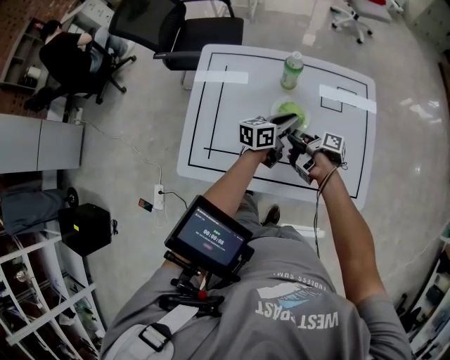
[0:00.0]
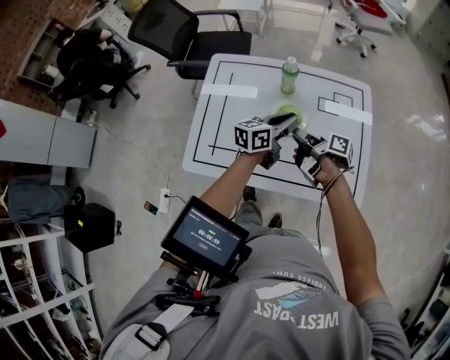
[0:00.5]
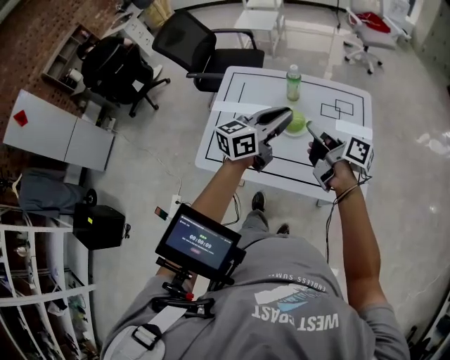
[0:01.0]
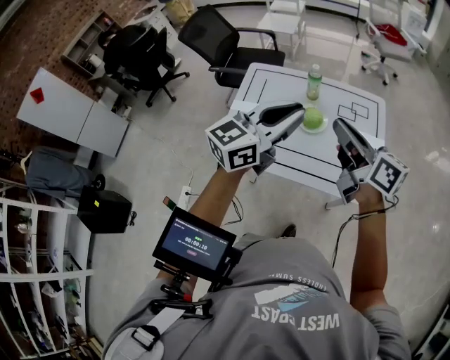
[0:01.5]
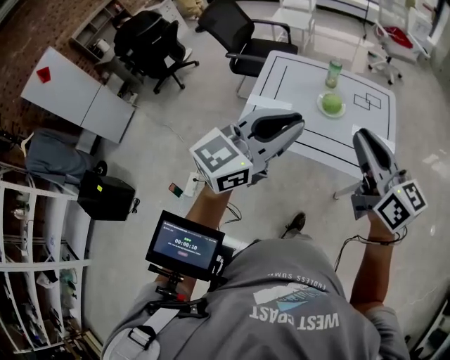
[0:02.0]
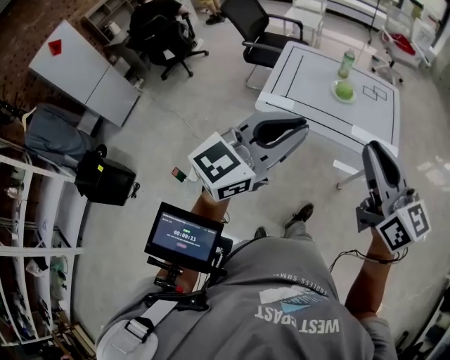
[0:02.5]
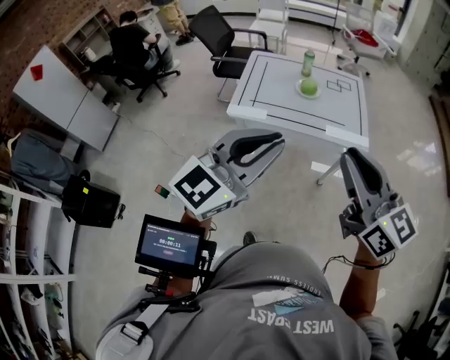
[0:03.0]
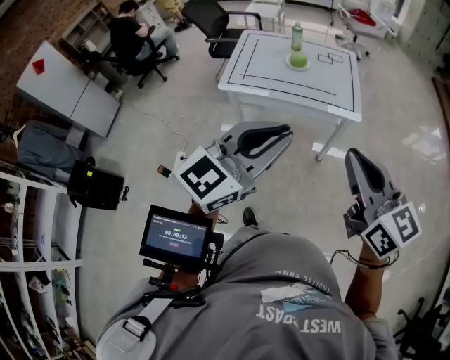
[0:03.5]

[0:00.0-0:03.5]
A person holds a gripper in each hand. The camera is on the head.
0:00.0 to 0:02.0: The left gripper ends up about 50 cm from where it was, and rotates around the line of its fingers by roughly 40 degrees, clockwise from behind.
0:02.0 to 0:03.5: The left gripper moves approximately 35 cm.

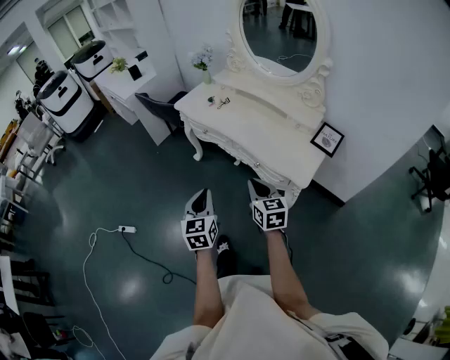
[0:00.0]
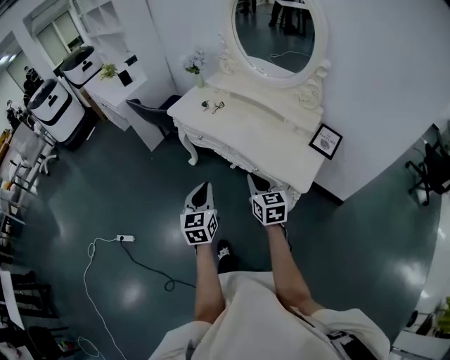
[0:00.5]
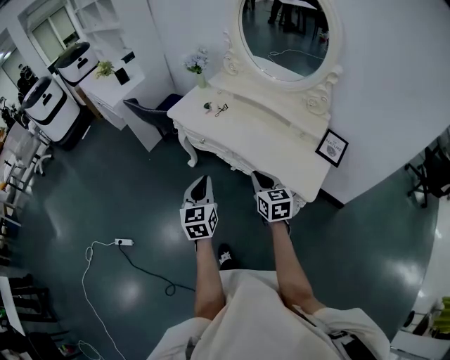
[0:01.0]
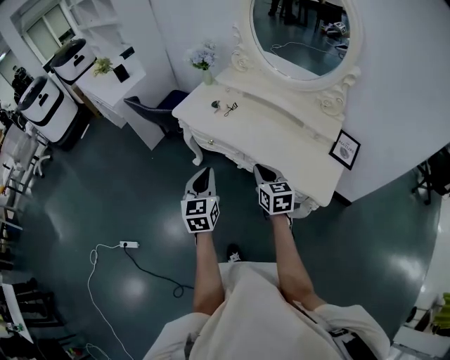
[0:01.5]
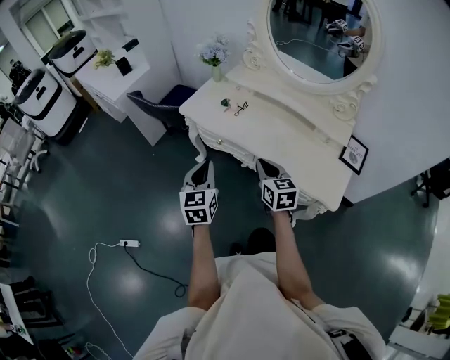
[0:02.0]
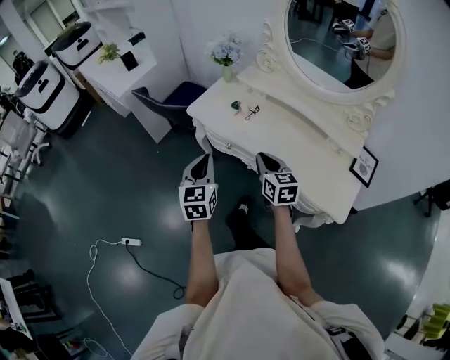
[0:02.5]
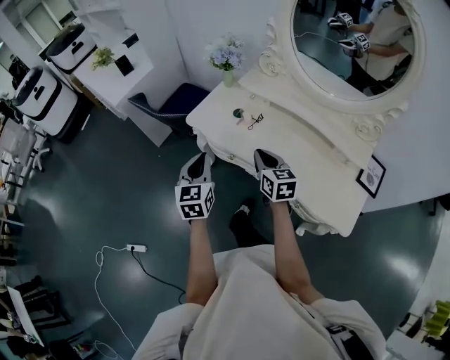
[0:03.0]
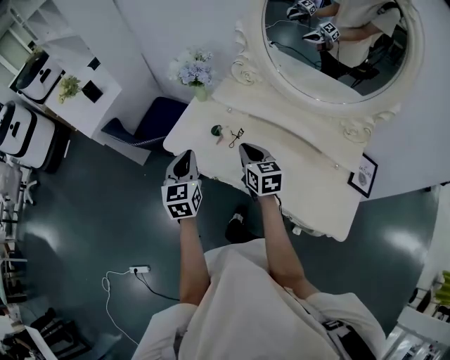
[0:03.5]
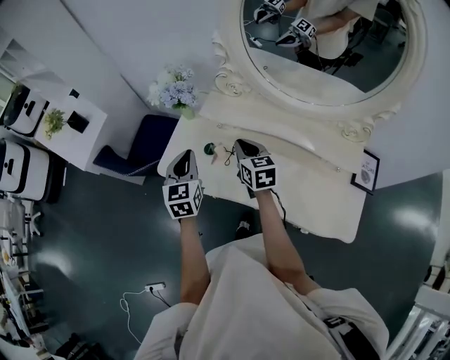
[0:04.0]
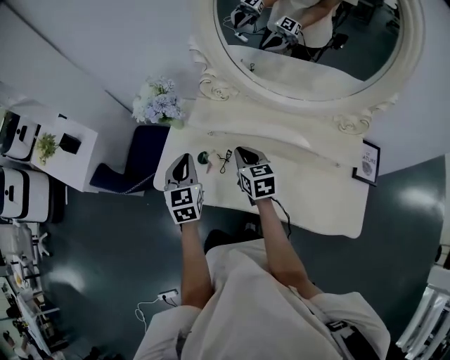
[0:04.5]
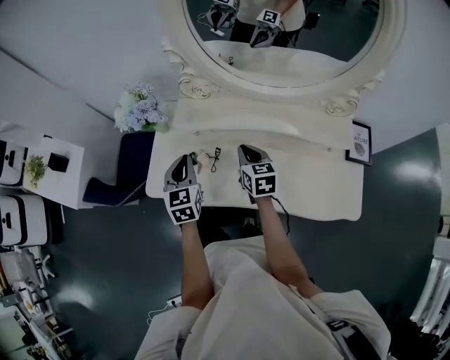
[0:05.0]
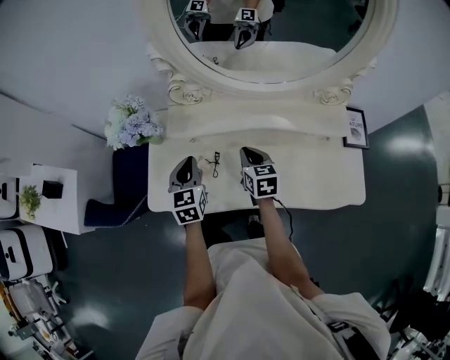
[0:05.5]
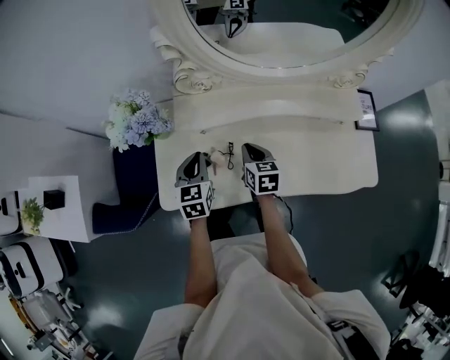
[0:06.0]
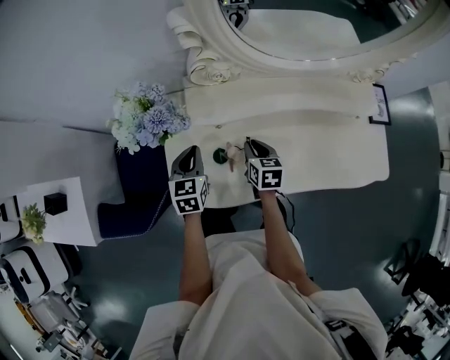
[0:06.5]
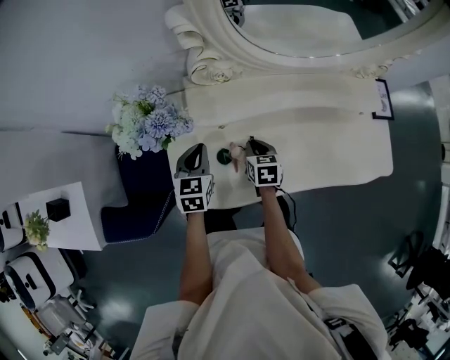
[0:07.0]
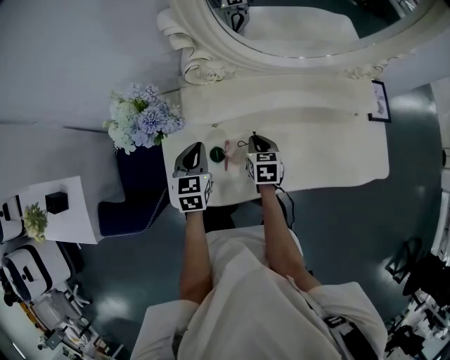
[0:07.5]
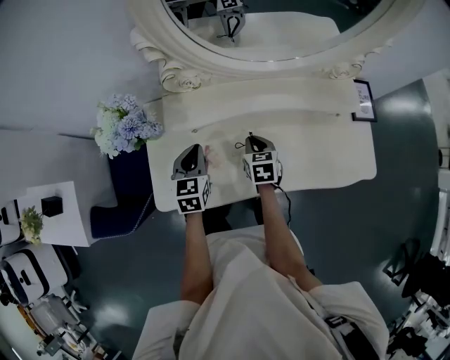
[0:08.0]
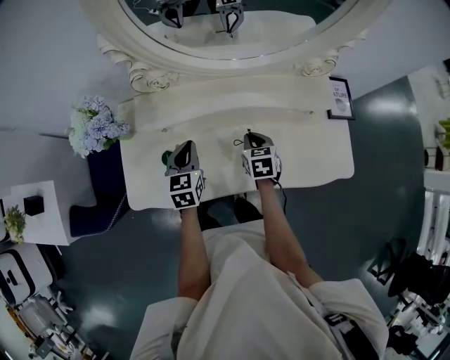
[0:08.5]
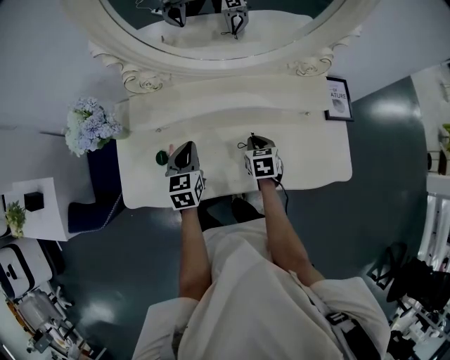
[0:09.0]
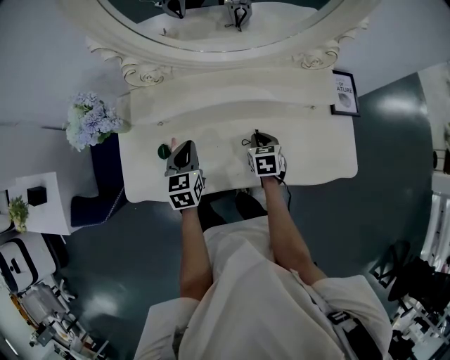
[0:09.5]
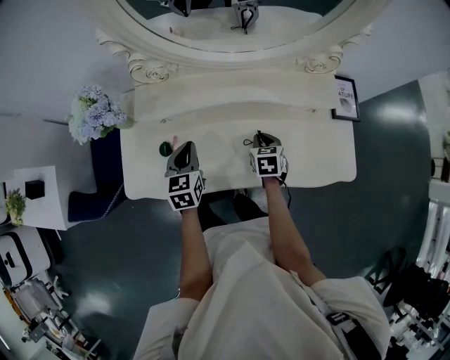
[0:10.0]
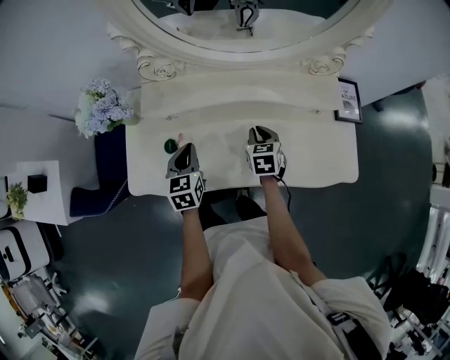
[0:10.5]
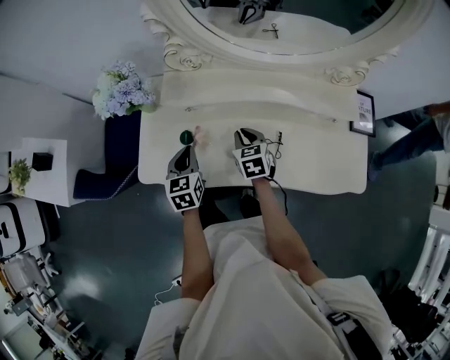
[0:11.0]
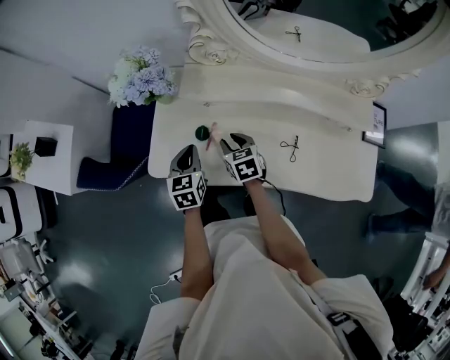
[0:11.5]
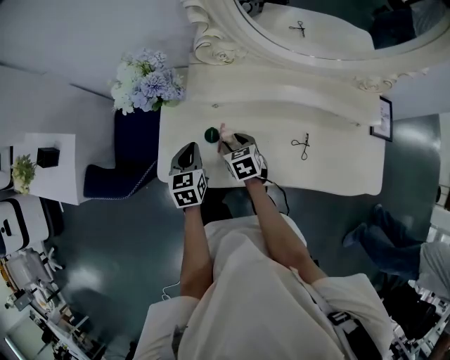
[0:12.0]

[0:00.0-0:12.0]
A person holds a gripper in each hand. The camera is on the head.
0:00.0 to 0:02.0: The two grippers go roughly 25 cm forward.
0:02.0 to 0:04.0: Both grippers travel together forward, about 40 cm.
0:04.0 to 0:06.0: The grippers both shift downward by about 10 cm. The right gripper changes its angle by roughly 30 degrees. The left gripper turns by roughly 30 degrees.
0:06.0 to 0:08.0: The left gripper goes to the left and returns, some 5 cm each way.
0:08.0 to 0:10.0: The left gripper travels to the right by about 10 cm; the right gripper moves to the right, some 15 cm.
0:10.0 to 0:12.0: The right gripper travels to the left by approximately 30 cm, changes its angle by approximately 30 degrees, and opens. The left gripper shifts approximately 20 cm to the left.

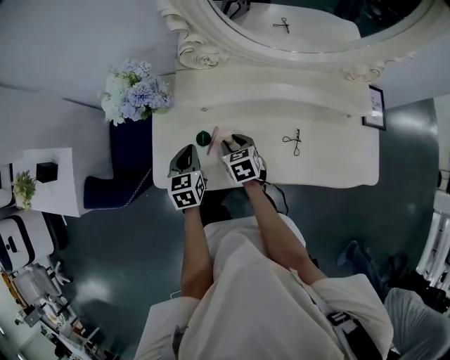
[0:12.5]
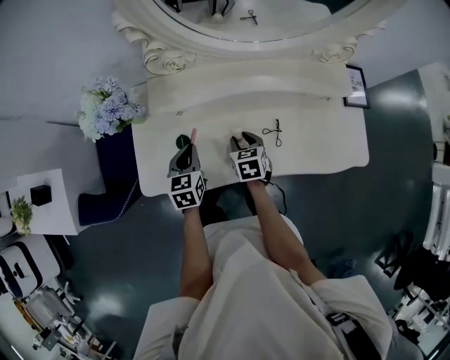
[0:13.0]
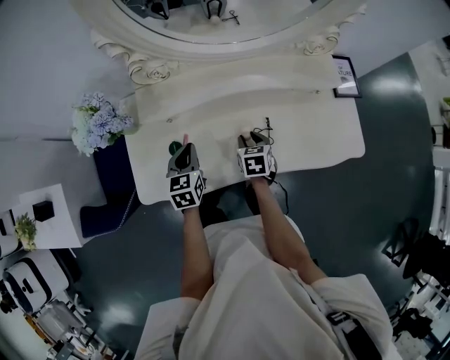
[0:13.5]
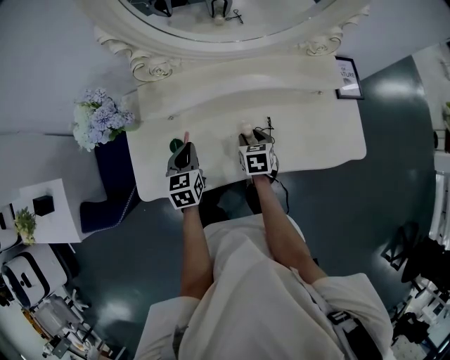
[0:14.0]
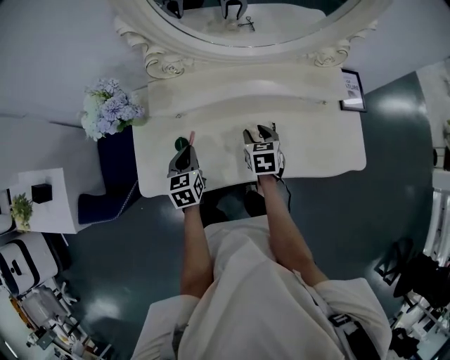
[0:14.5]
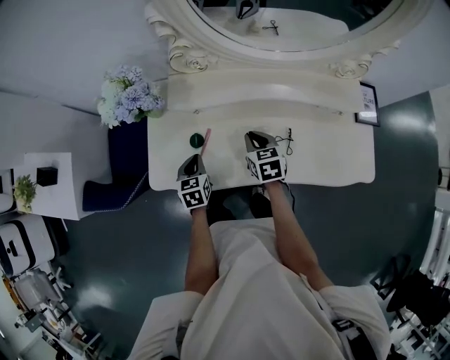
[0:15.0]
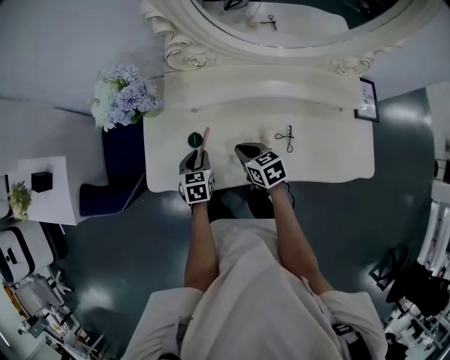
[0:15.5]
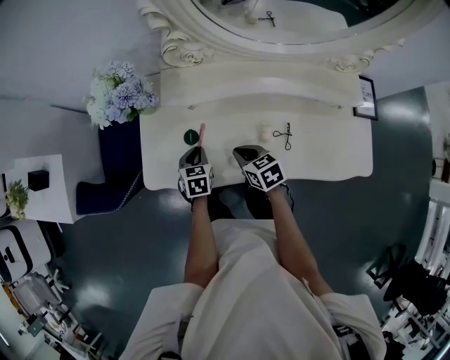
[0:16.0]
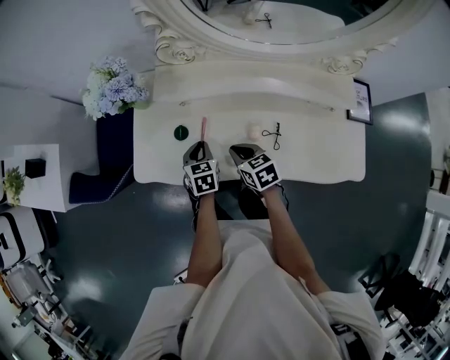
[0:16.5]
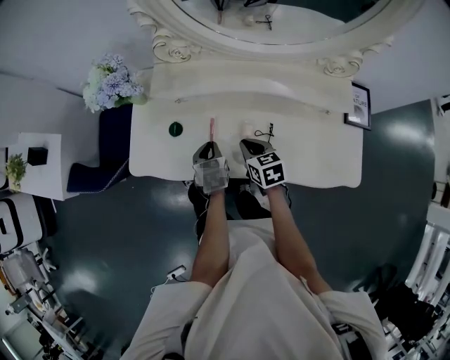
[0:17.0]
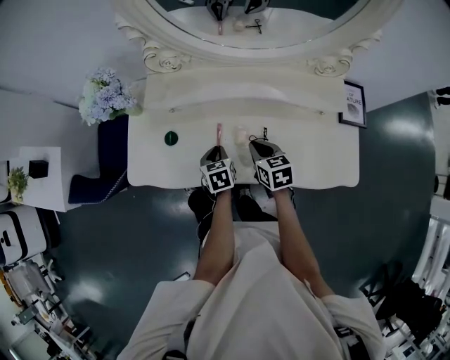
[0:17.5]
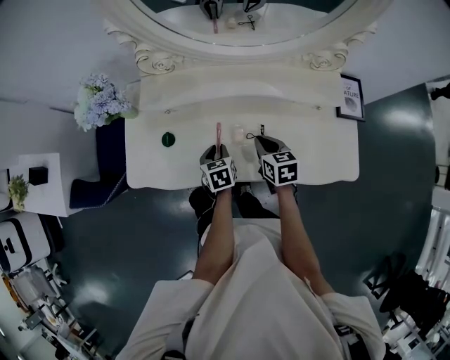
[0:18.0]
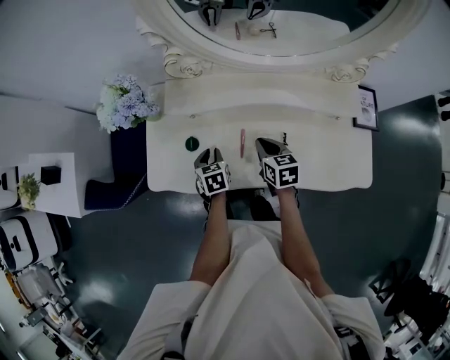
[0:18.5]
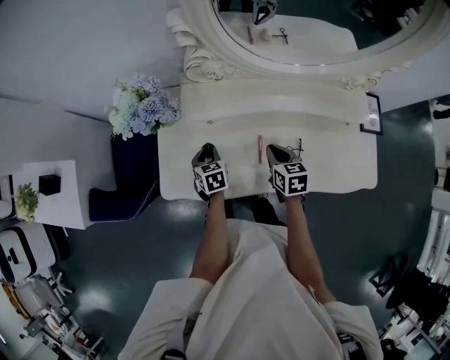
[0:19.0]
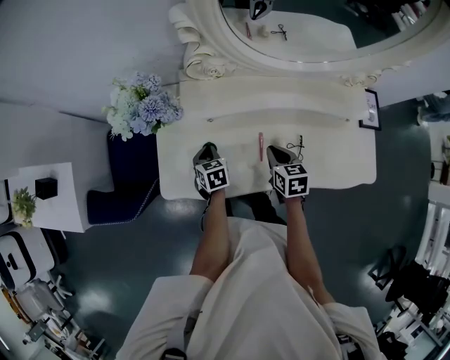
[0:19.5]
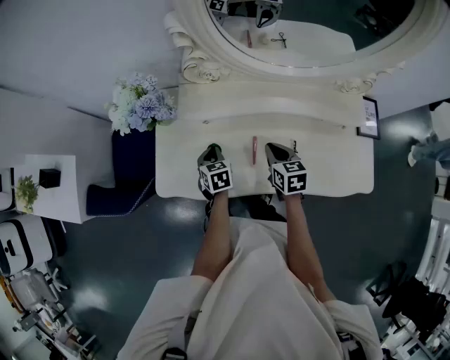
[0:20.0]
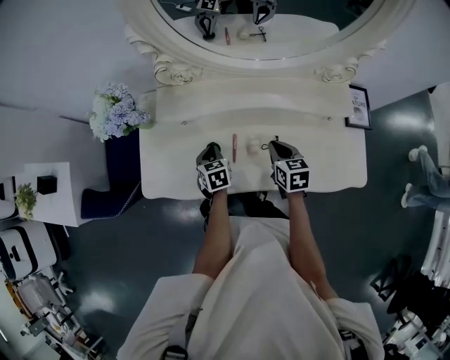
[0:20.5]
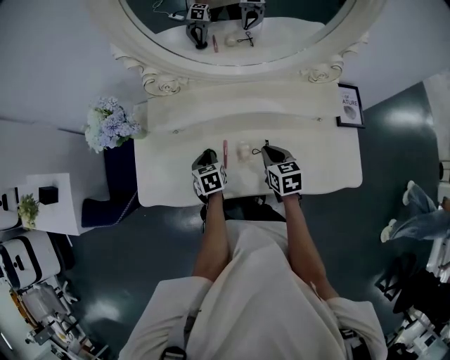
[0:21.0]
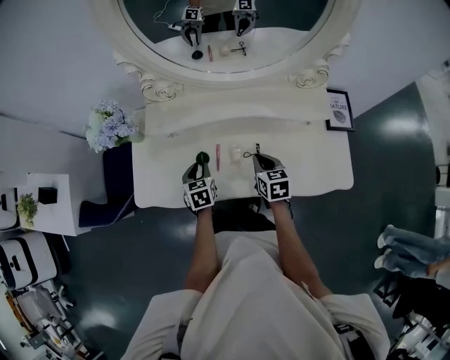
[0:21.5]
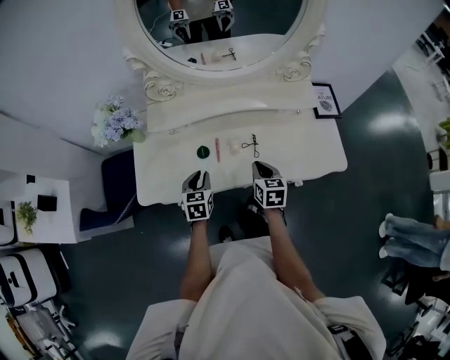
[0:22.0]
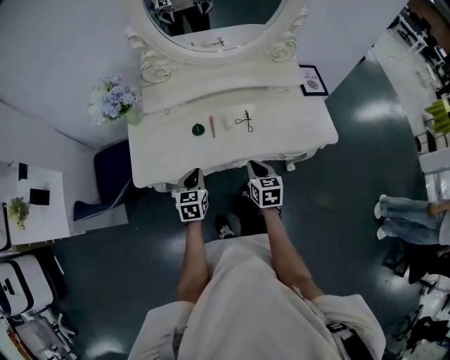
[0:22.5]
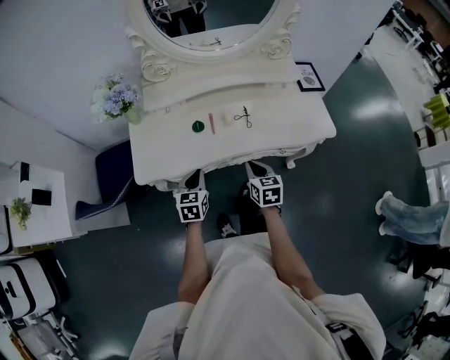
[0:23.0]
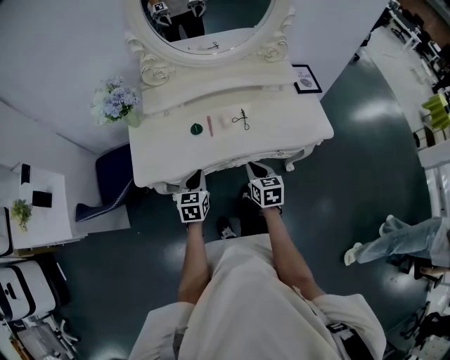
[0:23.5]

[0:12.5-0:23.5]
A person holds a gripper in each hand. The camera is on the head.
0:12.5 to 0:14.5: The right gripper heads to the right, covering about 20 cm, and changes its angle by some 20 degrees. The left gripper is displaced to the right by approximately 10 cm.
0:14.5 to 0:16.0: The right gripper heads to the left, covering approximately 15 cm, swivels approximately 30 degrees, and closes up, while the left gripper travels downward by about 10 cm.
0:16.0 to 0:18.0: Both grippers move to the right, approximately 15 cm.
0:18.0 to 0:20.0: The right gripper moves to the left, roughly 10 cm. Meanwhile the left gripper travels to the left and forward by some 15 cm.
0:20.0 to 0:21.5: The two grippers go approximately 10 cm to the right and backward.
0:21.5 to 0:23.5: Both grippers move backward, about 20 cm. The left gripper turns by about 20 degrees, and closes.
